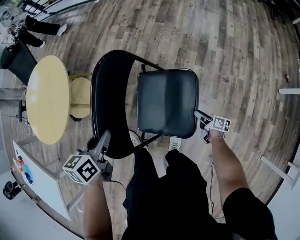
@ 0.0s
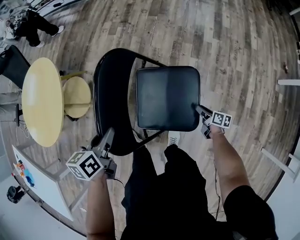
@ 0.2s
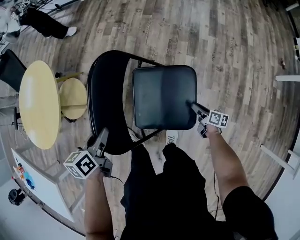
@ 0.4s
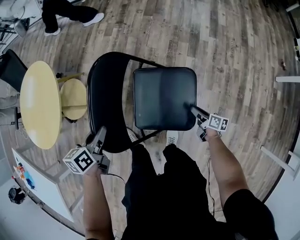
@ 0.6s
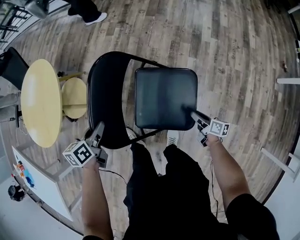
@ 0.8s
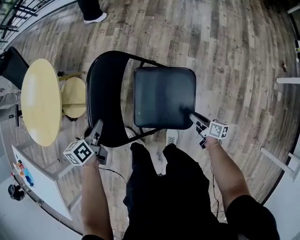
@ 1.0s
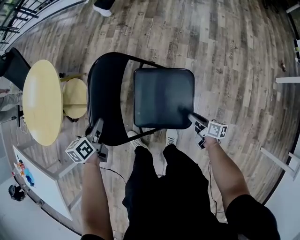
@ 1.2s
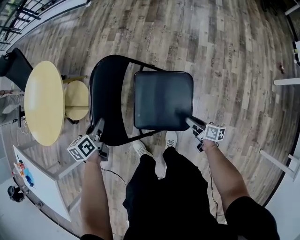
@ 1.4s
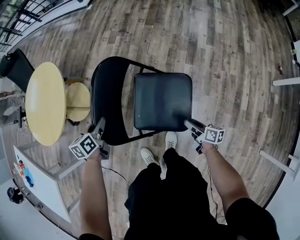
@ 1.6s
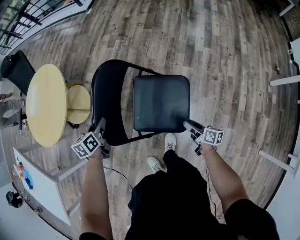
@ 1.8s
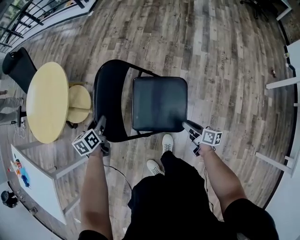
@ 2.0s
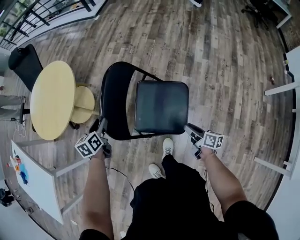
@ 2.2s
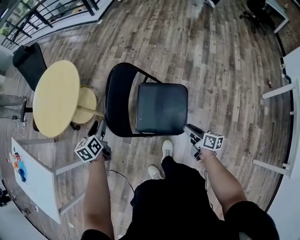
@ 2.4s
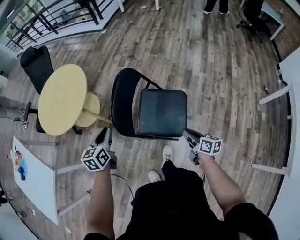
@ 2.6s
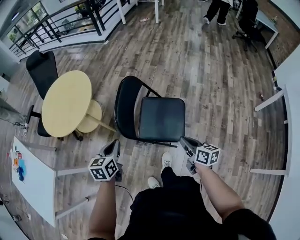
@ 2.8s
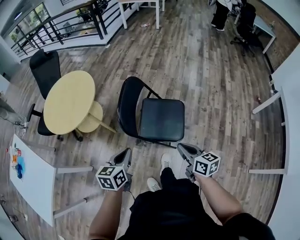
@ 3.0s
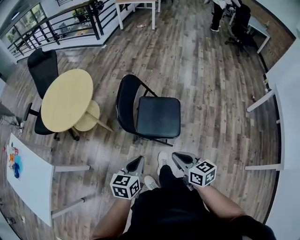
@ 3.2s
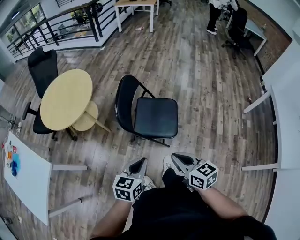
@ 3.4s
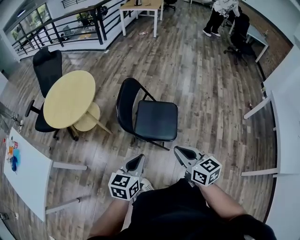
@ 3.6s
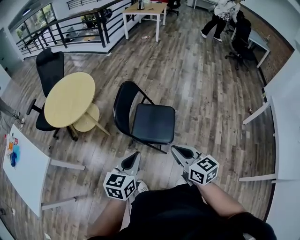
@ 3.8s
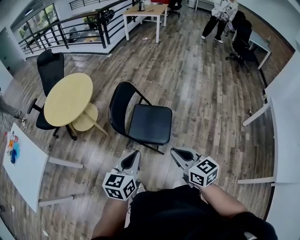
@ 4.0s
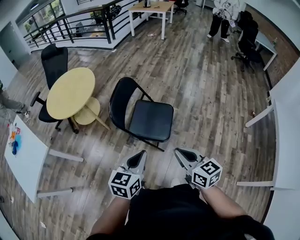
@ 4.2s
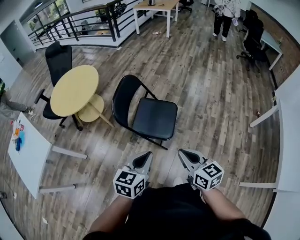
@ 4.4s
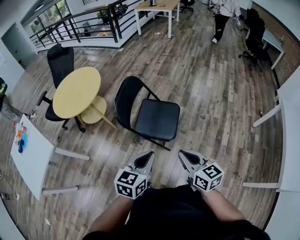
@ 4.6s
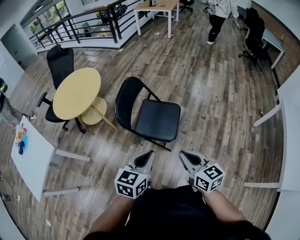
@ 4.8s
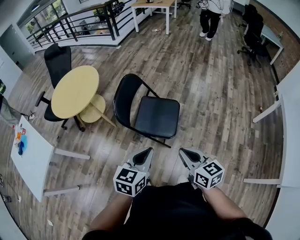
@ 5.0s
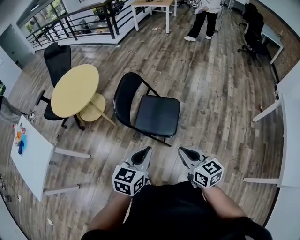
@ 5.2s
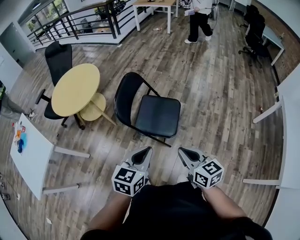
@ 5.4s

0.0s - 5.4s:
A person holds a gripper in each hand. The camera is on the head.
0.0s - 1.4s: The right gripper is displaced backward and upward by some 10 cm. The left gripper moves downward, about 10 cm.
1.4s - 2.8s: The left gripper heads backward and upward, covering roughly 25 cm, and closes its fingers. Meanwhile the right gripper moves upward, roughly 30 cm, rotates approximately 20 degrees, and closes up.
2.8s - 4.0s: The right gripper travels upward and backward by roughly 25 cm, and swivels some 30 degrees; the left gripper travels backward, to the right and upward by some 25 cm.

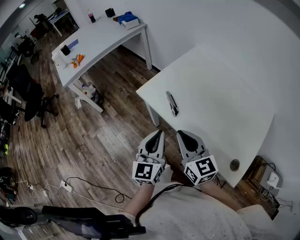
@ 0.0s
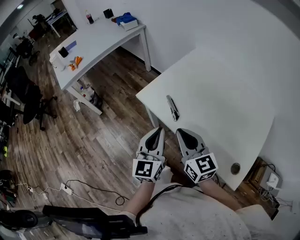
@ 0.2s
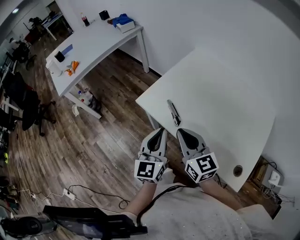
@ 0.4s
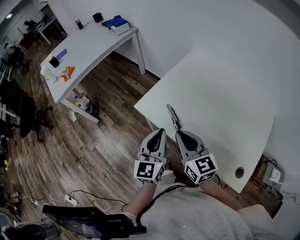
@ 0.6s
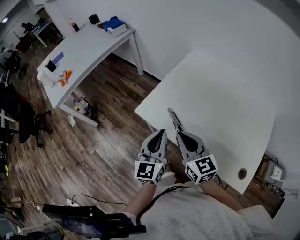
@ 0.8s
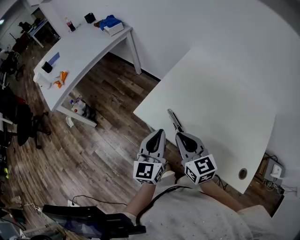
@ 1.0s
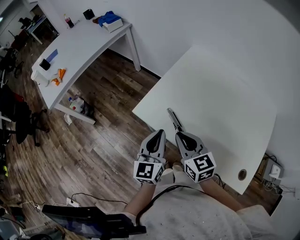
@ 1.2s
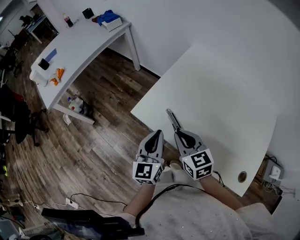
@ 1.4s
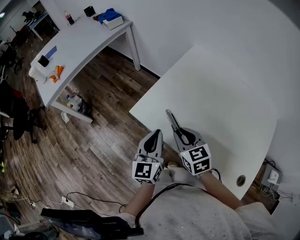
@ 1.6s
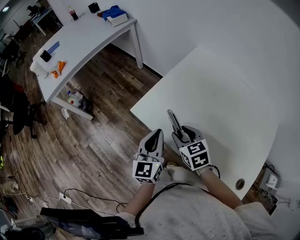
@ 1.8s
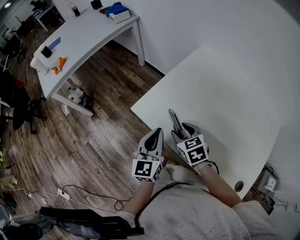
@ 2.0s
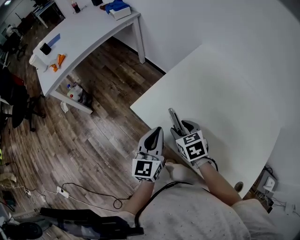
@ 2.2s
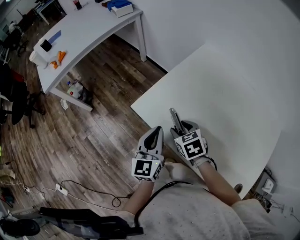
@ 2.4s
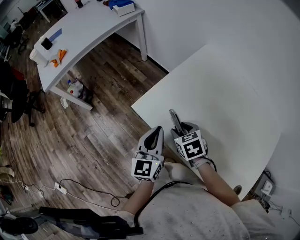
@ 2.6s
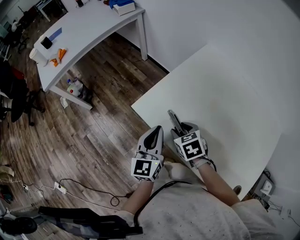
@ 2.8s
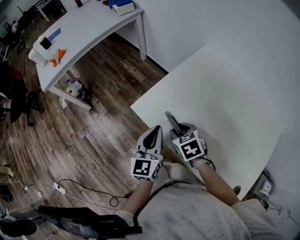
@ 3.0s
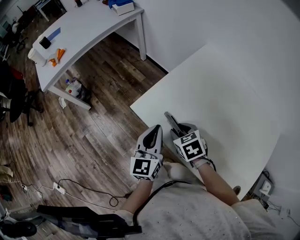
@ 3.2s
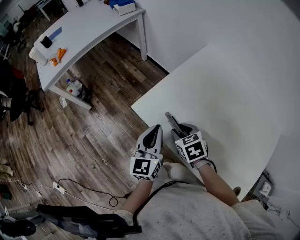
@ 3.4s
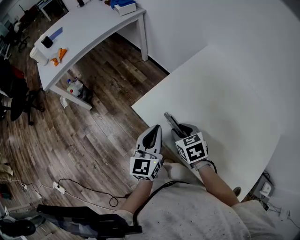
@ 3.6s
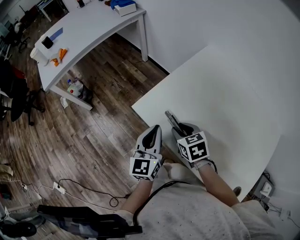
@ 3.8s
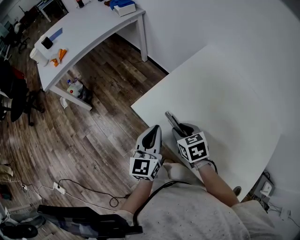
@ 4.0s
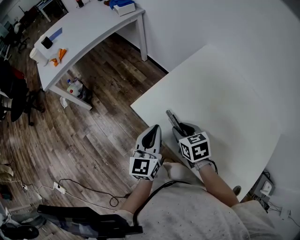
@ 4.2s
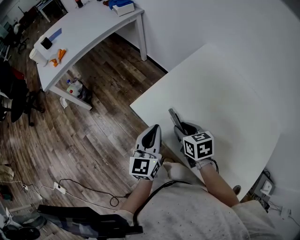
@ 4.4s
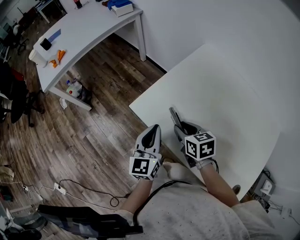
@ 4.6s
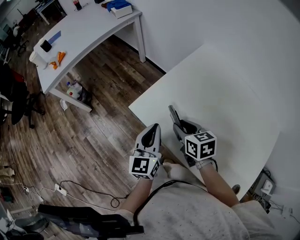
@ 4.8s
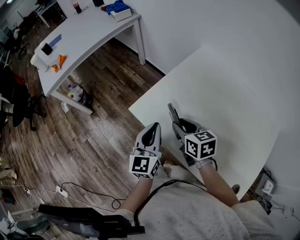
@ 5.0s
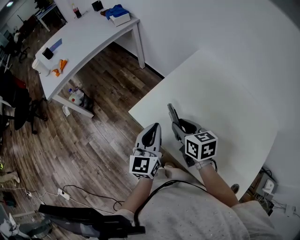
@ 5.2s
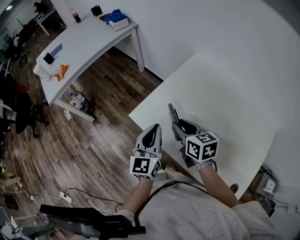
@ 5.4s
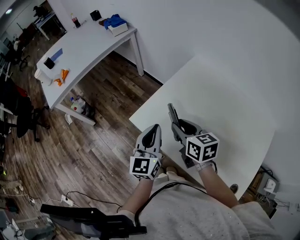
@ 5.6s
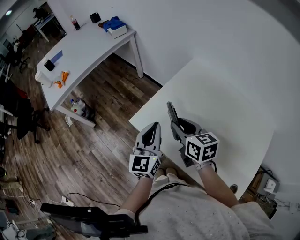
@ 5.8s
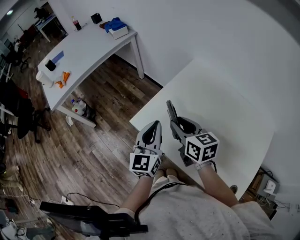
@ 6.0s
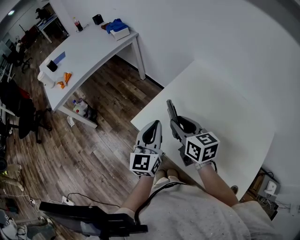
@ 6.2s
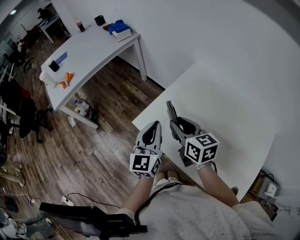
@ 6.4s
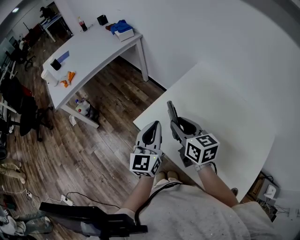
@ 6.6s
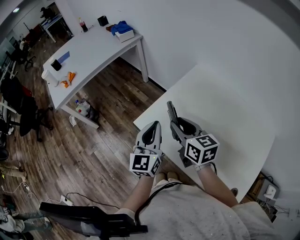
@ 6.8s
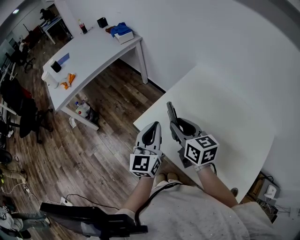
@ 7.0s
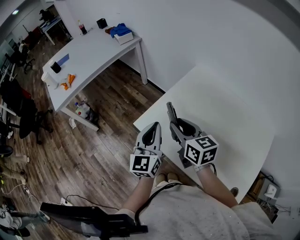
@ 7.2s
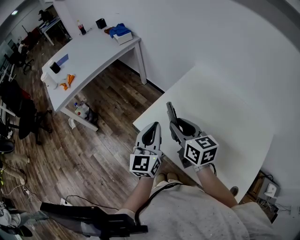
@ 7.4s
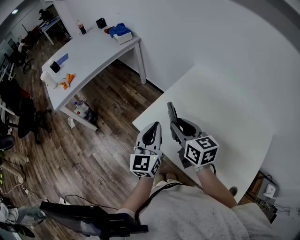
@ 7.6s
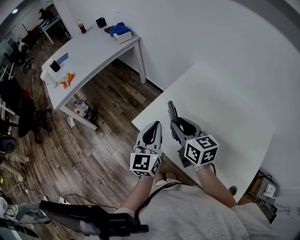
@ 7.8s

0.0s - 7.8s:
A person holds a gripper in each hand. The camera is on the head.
0.0s - 1.6s: The grippers both shift forward and downward by roughly 20 cm. The right gripper changes its angle by some 30 degrees.
1.6s - 3.2s: The right gripper moves downward, about 10 cm, changes its angle by roughly 20 degrees, and opens up.
3.2s - 4.6s: The right gripper turns by some 20 degrees.
4.6s - 6.2s: Both grippers travel together upward, some 15 cm. The right gripper swivels some 20 degrees.
6.2s - 7.8s: The grippers make only small movements.

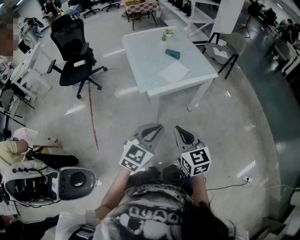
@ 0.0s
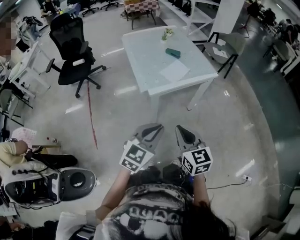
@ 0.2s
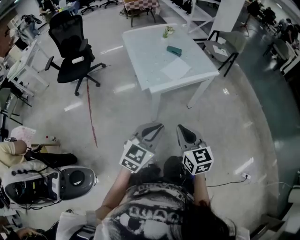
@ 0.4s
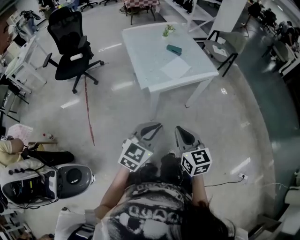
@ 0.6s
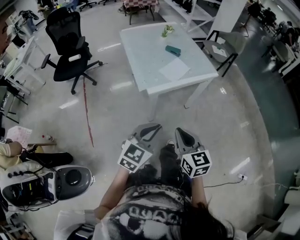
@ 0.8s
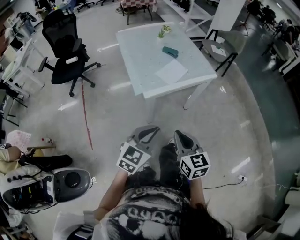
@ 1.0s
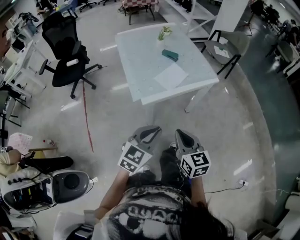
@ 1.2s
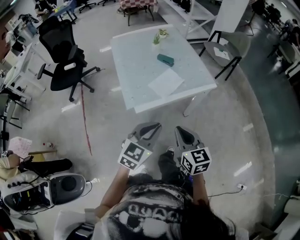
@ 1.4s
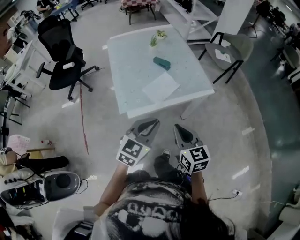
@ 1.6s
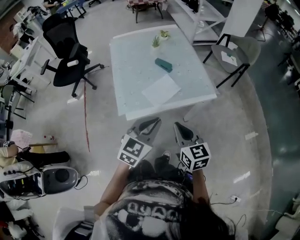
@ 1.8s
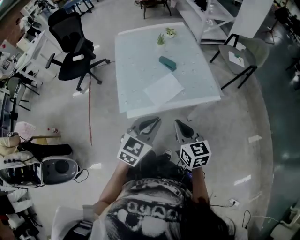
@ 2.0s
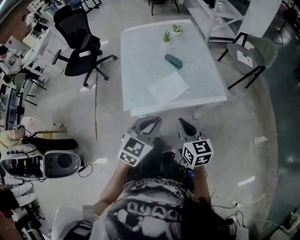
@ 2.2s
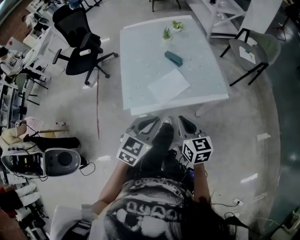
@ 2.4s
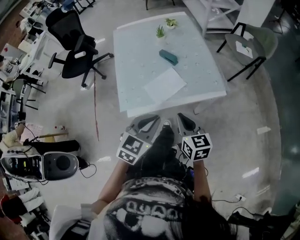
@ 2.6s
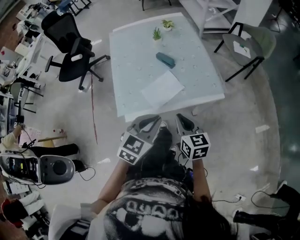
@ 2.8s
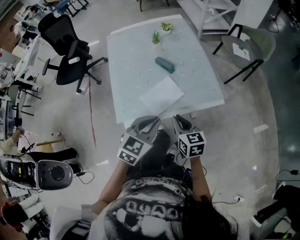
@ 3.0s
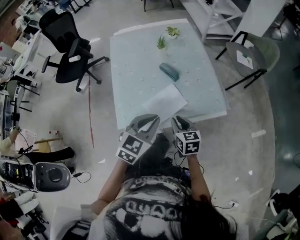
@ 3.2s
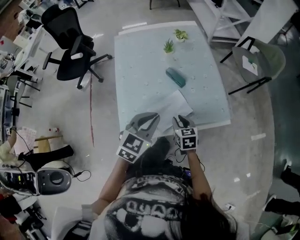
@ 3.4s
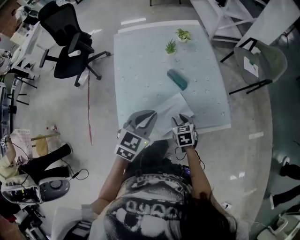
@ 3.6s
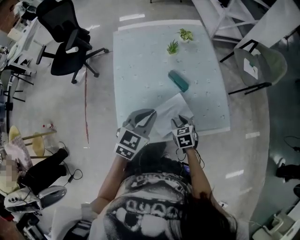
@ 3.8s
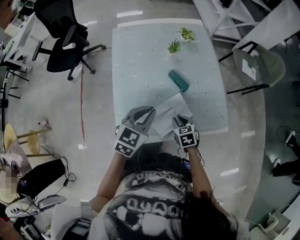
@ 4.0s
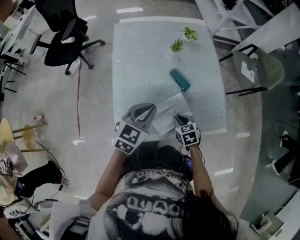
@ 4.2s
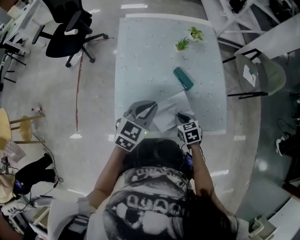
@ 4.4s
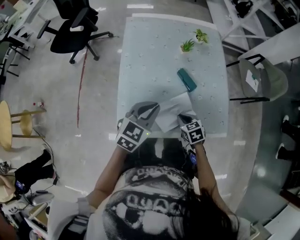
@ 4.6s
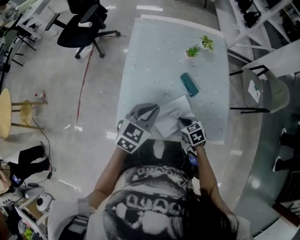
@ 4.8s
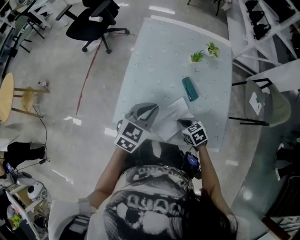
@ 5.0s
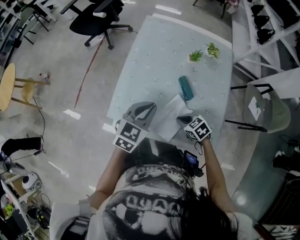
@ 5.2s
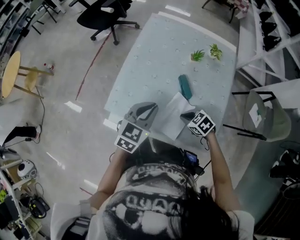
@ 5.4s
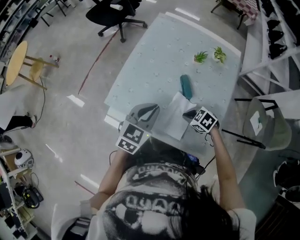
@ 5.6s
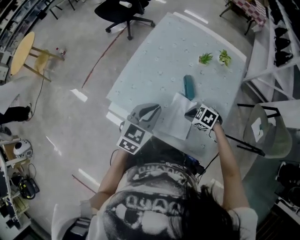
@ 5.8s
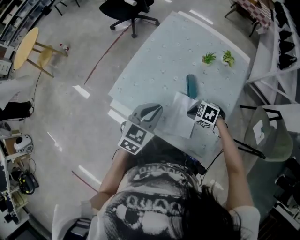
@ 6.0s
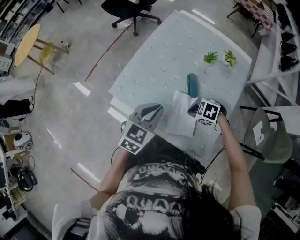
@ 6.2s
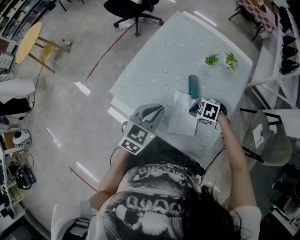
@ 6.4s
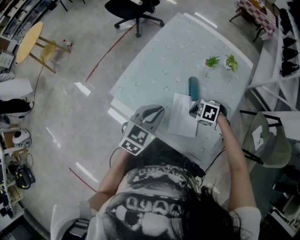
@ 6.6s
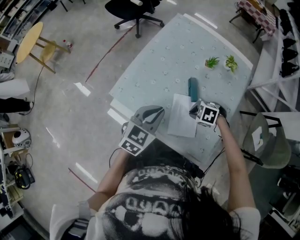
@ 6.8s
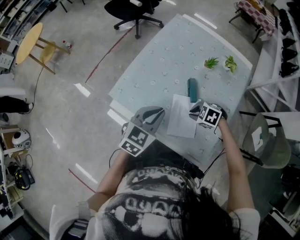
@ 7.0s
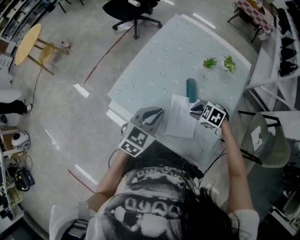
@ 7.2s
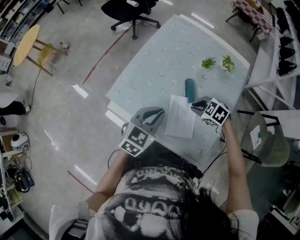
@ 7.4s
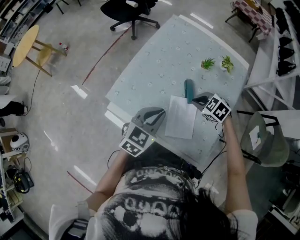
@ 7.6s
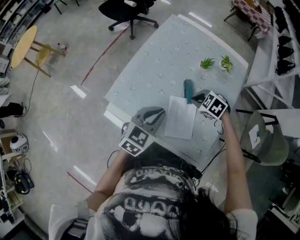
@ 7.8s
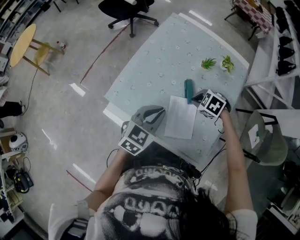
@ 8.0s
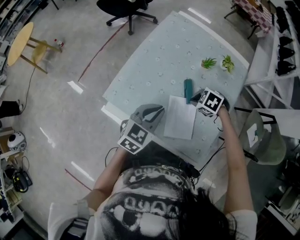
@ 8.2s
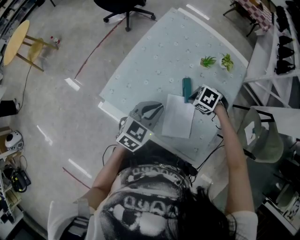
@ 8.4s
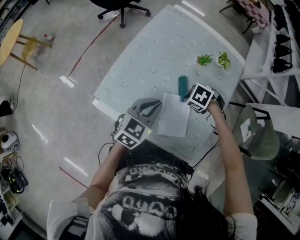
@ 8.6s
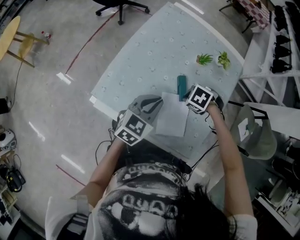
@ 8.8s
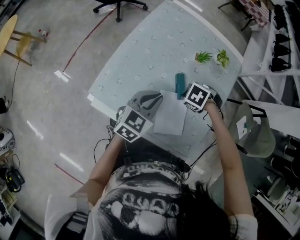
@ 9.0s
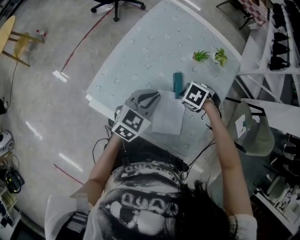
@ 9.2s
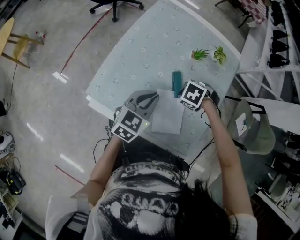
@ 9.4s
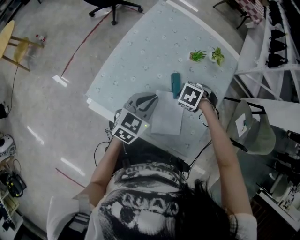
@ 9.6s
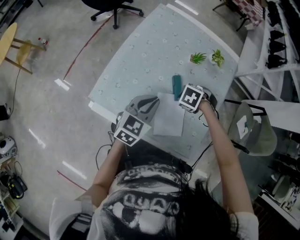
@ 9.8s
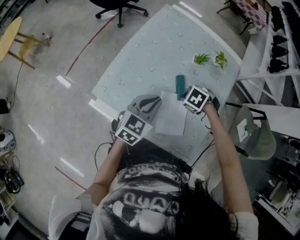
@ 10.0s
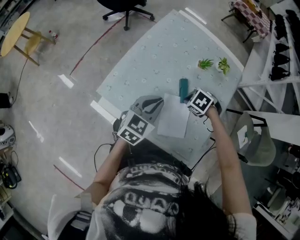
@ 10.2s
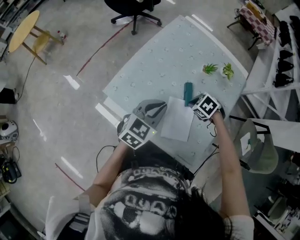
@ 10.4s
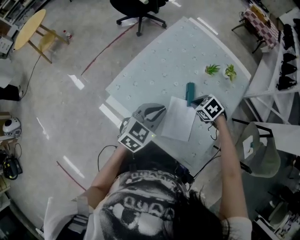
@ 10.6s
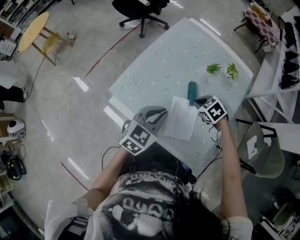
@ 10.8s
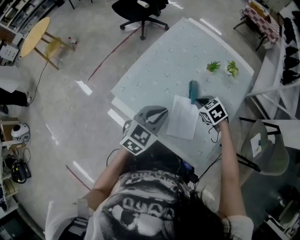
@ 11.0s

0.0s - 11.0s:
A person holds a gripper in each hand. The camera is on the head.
0.0s - 1.6s: Both grippers travel together forward, roughly 25 cm.
1.6s - 3.2s: The right gripper travels forward and downward by some 25 cm, while the left gripper travels forward by some 20 cm.
3.2s - 4.8s: The right gripper moves downward and forward, about 15 cm, and rotates approximately 40 degrees; the left gripper goes roughly 15 cm forward and to the left.
4.8s - 6.2s: The right gripper moves approximately 10 cm, and twists approximately 60 degrees counterclockwise, seen from behind, while the left gripper moves some 10 cm, and swivels approximately 30 degrees.
6.2s - 7.8s: The right gripper changes place by some 10 cm.
7.8s - 9.4s: The right gripper changes its angle by roughly 20 degrees. The left gripper shifts by some 5 cm.
9.4s - 11.0s: The right gripper rotates roughly 30 degrees, while the left gripper ends up approximately 10 cm from where it was.
